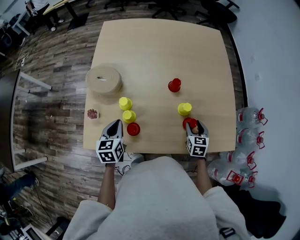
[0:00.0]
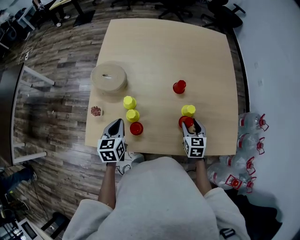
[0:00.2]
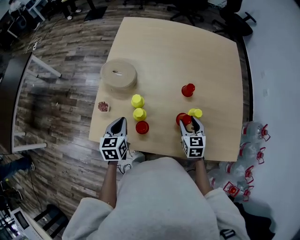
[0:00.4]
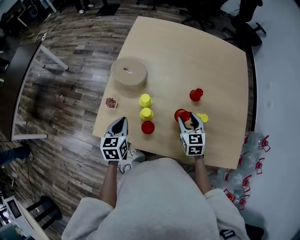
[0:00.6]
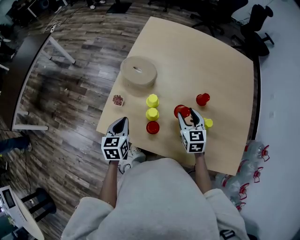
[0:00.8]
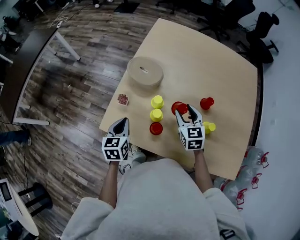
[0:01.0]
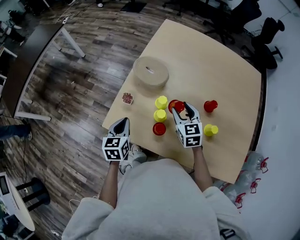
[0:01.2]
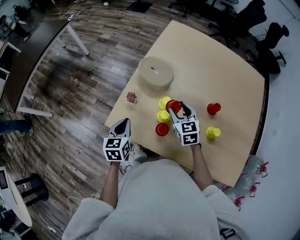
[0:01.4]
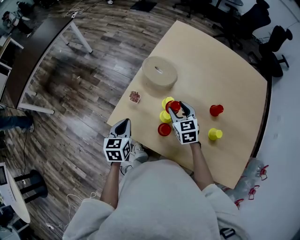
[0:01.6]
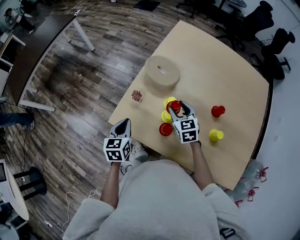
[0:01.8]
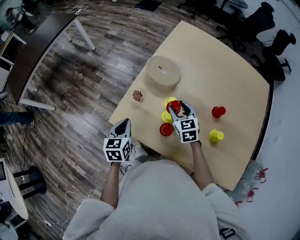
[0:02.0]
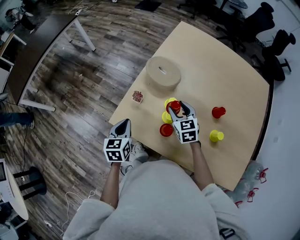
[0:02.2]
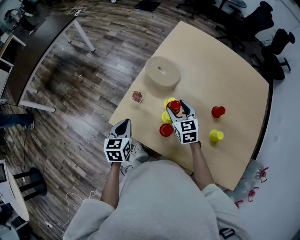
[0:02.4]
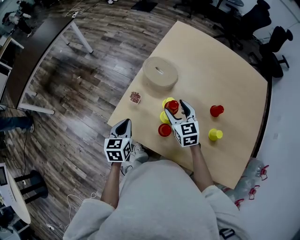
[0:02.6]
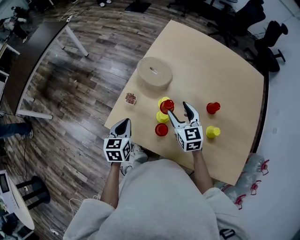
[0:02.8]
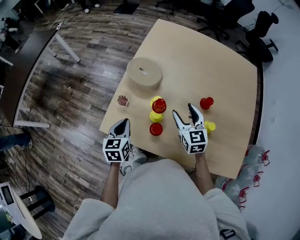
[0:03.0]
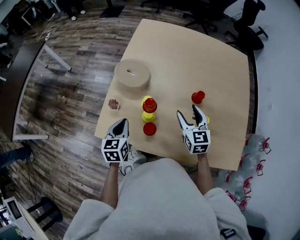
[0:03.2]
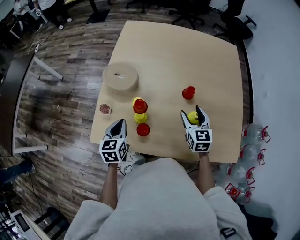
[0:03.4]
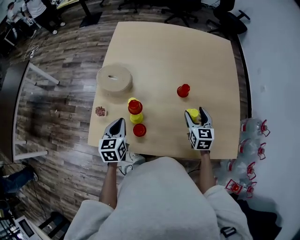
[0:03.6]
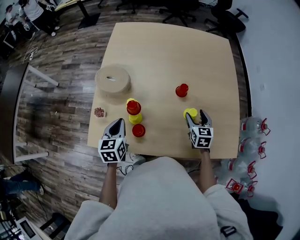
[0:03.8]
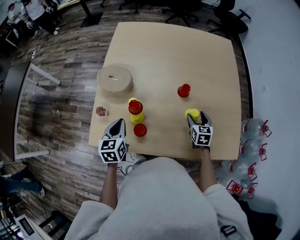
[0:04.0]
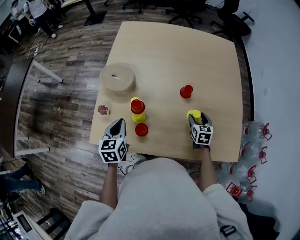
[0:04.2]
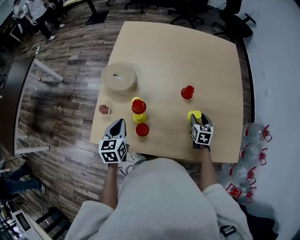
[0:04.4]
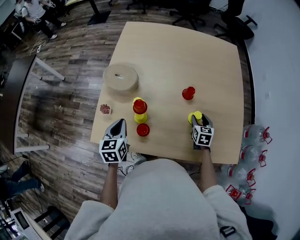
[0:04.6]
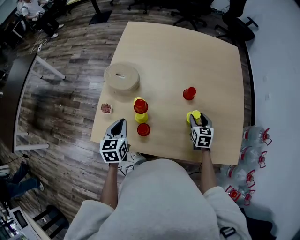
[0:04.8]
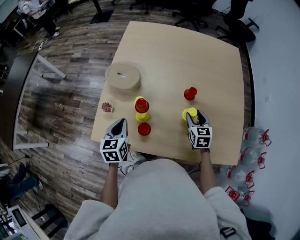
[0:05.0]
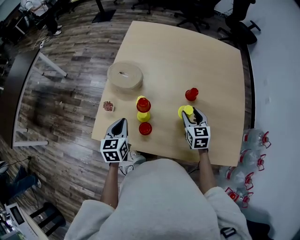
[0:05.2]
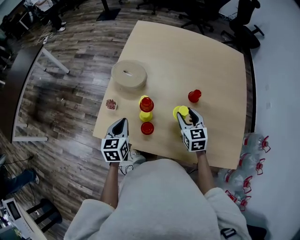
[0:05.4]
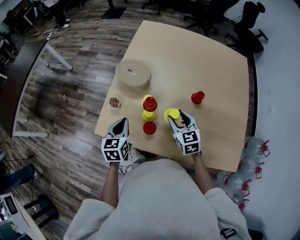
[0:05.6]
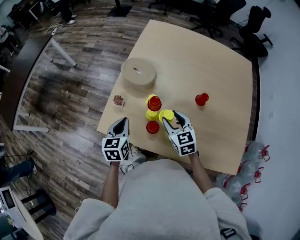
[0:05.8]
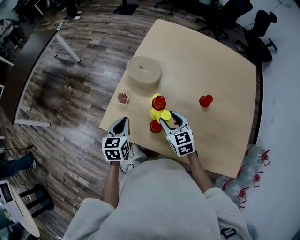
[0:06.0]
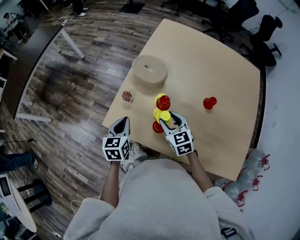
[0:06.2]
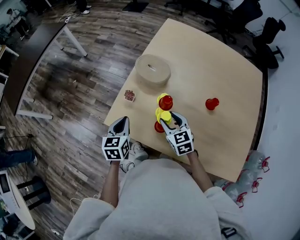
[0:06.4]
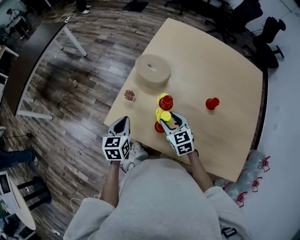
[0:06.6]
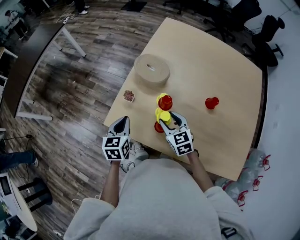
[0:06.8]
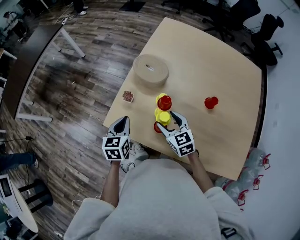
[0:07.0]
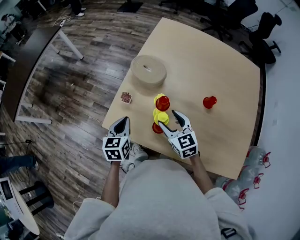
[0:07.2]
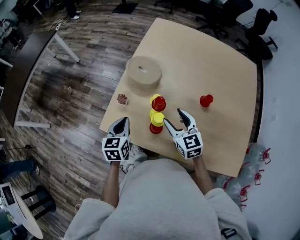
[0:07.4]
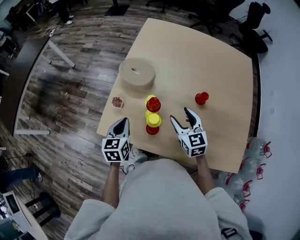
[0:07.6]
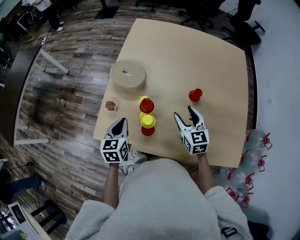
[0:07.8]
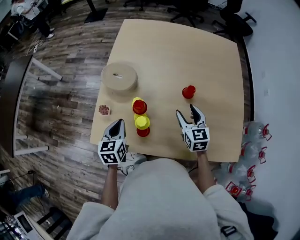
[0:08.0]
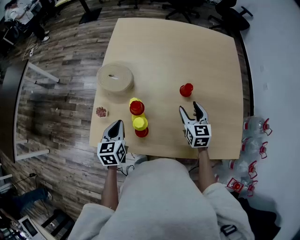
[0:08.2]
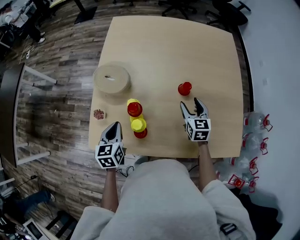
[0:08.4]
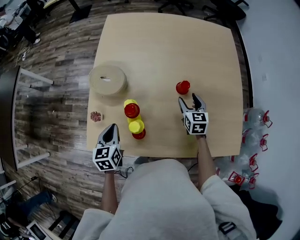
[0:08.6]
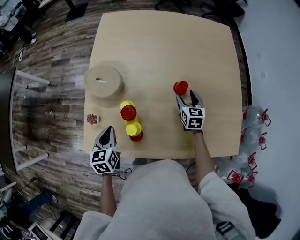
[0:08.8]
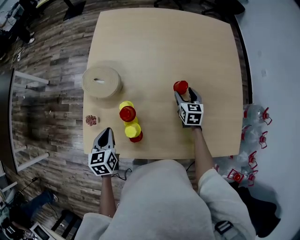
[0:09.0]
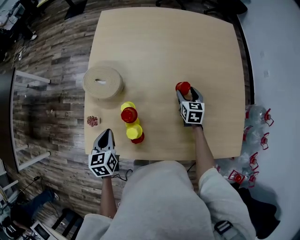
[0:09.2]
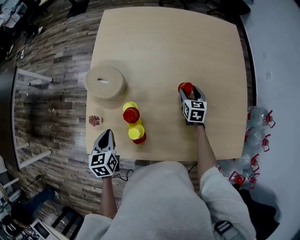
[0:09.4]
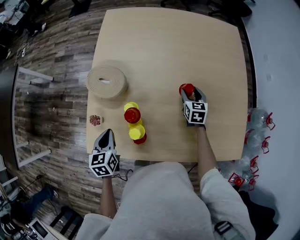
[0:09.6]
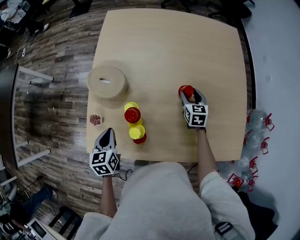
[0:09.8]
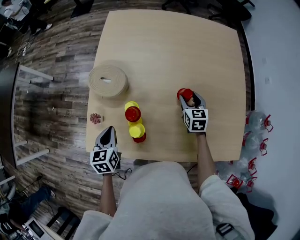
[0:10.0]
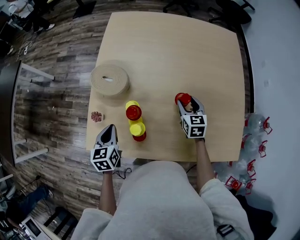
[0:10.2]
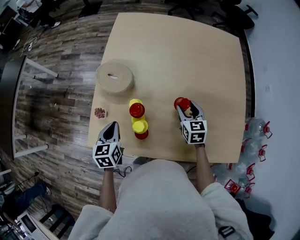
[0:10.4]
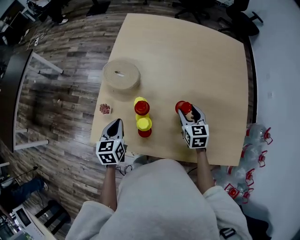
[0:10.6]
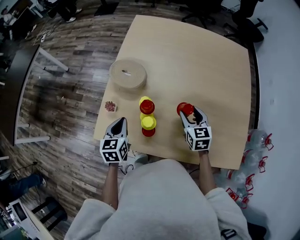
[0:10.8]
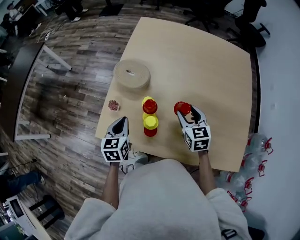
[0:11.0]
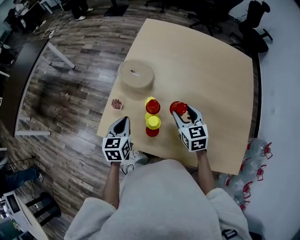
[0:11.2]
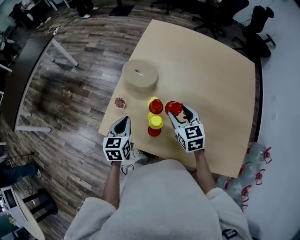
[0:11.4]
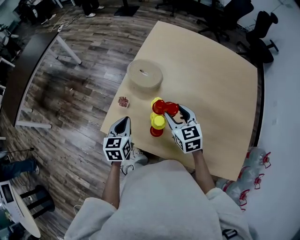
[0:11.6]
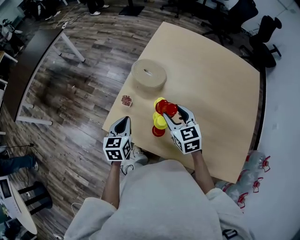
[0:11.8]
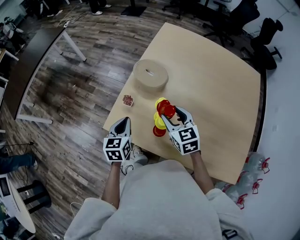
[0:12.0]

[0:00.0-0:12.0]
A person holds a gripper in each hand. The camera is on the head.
0:00.0 to 0:01.6: The left gripper ends up about 15 cm from where it was, and turns by roughly 20 degrees; the right gripper moves some 35 cm, and swivels approximately 50 degrees.
0:01.6 to 0:03.0: The right gripper travels to the right and upward by some 10 cm.
0:03.0 to 0:04.4: The right gripper is displaced to the right and downward by approximately 30 cm, and changes its angle by some 40 degrees. Meanwhile the left gripper moves to the right, some 5 cm.
0:04.4 to 0:06.0: The left gripper changes place by some 10 cm, while the right gripper changes place by roughly 30 cm, and turns by about 40 degrees.
0:06.0 to 0:07.6: The right gripper travels to the right by roughly 5 cm.
0:07.6 to 0:09.0: The right gripper travels to the right, downward and forward by about 25 cm, and rotates approximately 30 degrees. The left gripper shifts by roughly 5 cm.
0:09.0 to 0:10.4: The right gripper heads backward and upward, covering about 10 cm.
0:10.4 to 0:12.0: The right gripper shifts approximately 25 cm to the left and upward, and swivels approximately 30 degrees. The left gripper shifts some 5 cm to the left.

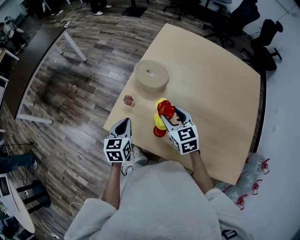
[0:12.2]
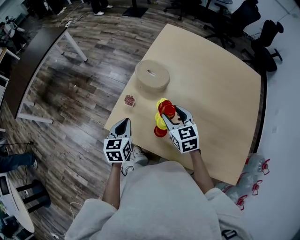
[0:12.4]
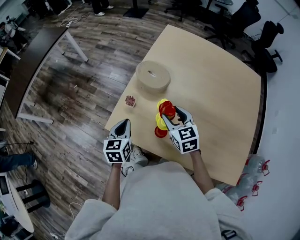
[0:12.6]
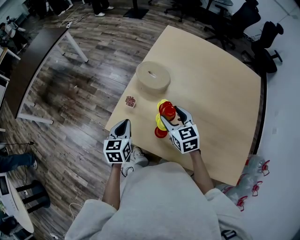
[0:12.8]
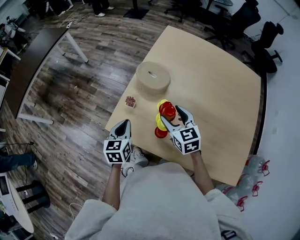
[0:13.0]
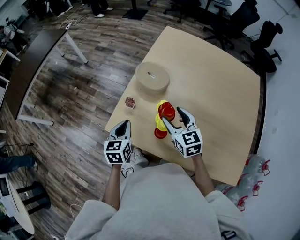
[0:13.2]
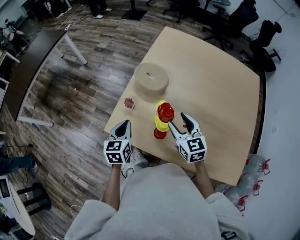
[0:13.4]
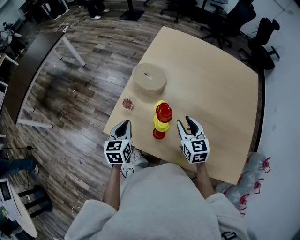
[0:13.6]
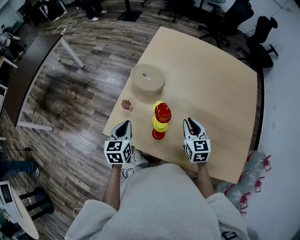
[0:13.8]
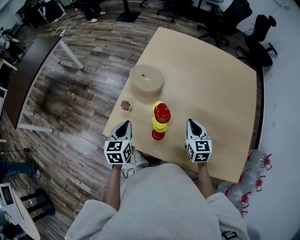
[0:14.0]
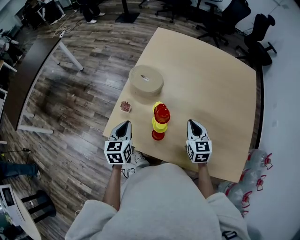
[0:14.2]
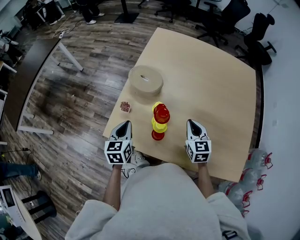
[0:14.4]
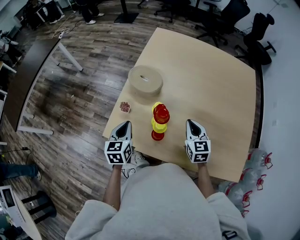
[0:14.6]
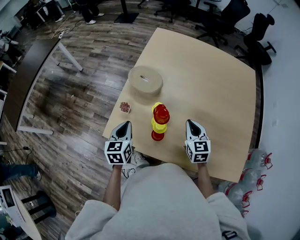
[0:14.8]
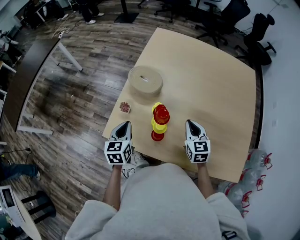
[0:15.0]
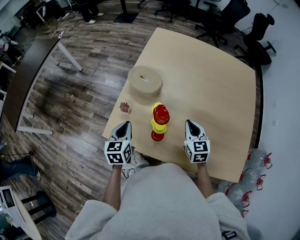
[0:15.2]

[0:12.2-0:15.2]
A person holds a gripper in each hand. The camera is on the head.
0:12.2 to 0:13.8: The right gripper moves to the right, some 10 cm, and closes its fingers.
0:13.8 to 0:15.2: The grippers move only a little.

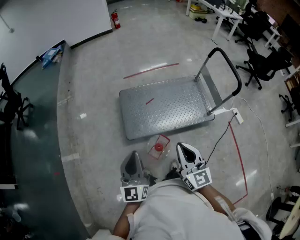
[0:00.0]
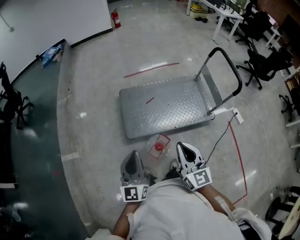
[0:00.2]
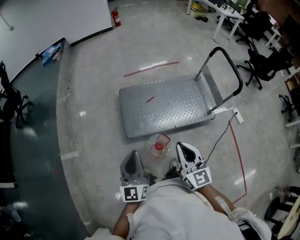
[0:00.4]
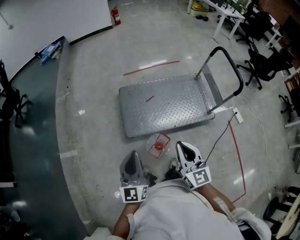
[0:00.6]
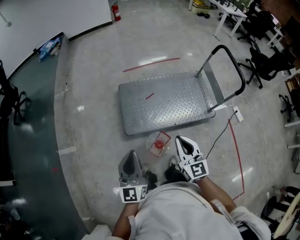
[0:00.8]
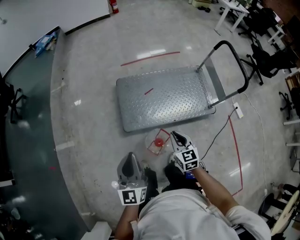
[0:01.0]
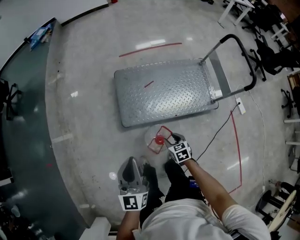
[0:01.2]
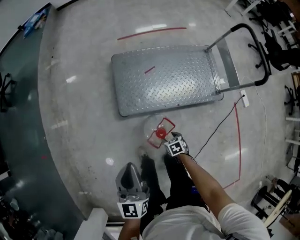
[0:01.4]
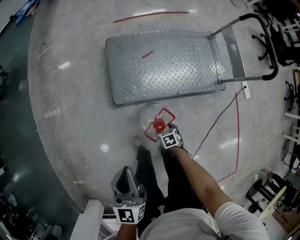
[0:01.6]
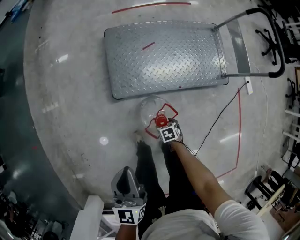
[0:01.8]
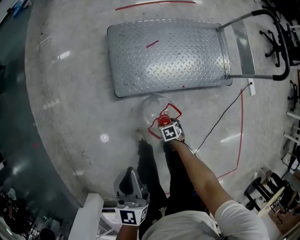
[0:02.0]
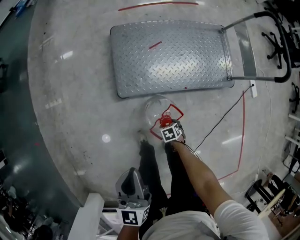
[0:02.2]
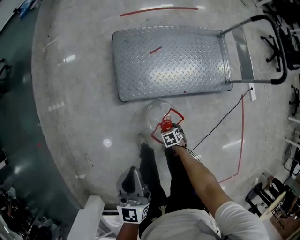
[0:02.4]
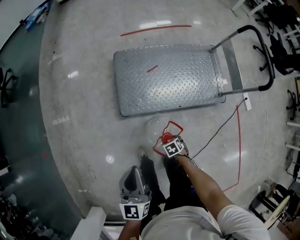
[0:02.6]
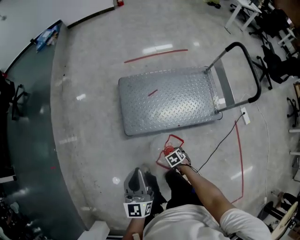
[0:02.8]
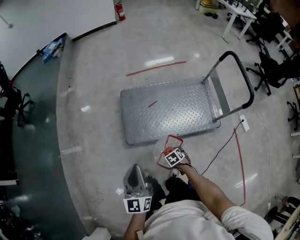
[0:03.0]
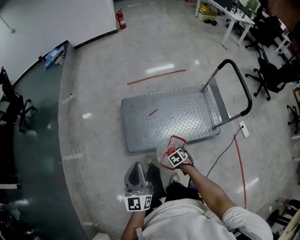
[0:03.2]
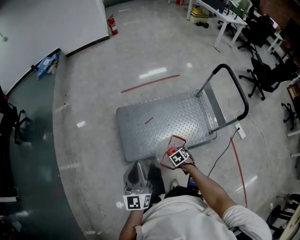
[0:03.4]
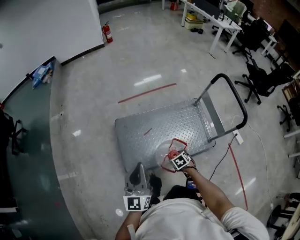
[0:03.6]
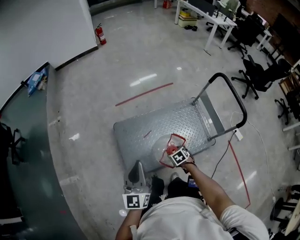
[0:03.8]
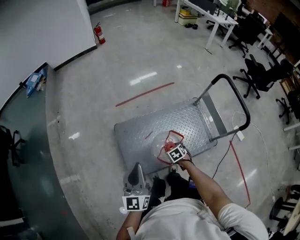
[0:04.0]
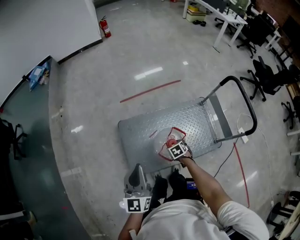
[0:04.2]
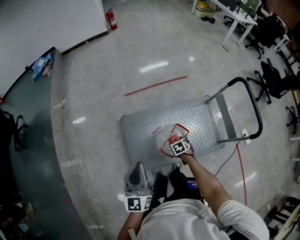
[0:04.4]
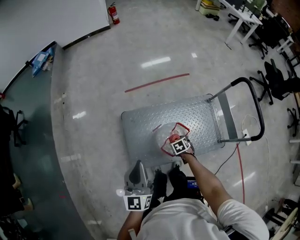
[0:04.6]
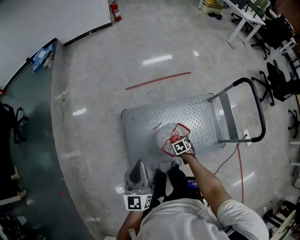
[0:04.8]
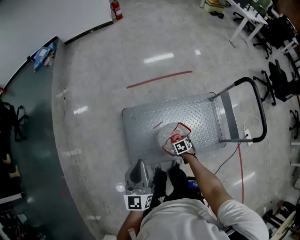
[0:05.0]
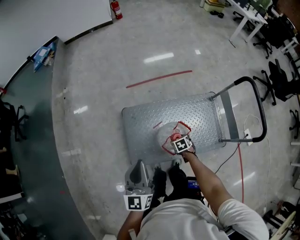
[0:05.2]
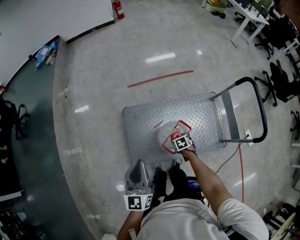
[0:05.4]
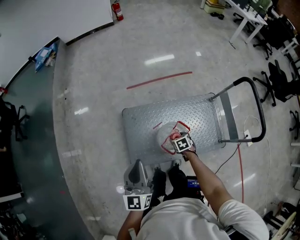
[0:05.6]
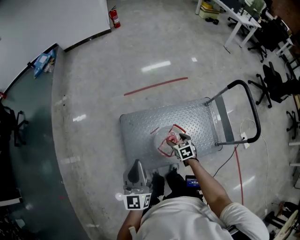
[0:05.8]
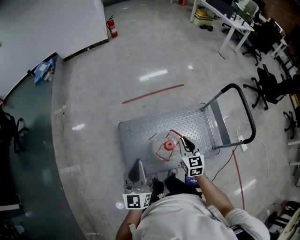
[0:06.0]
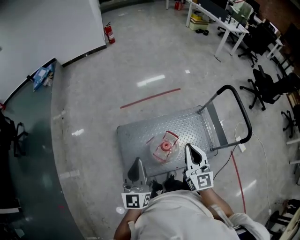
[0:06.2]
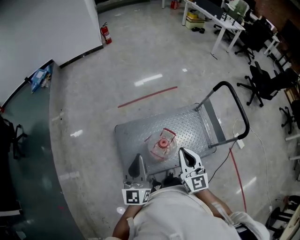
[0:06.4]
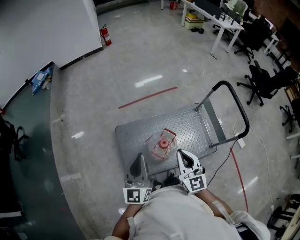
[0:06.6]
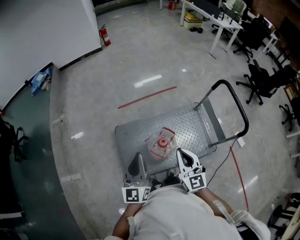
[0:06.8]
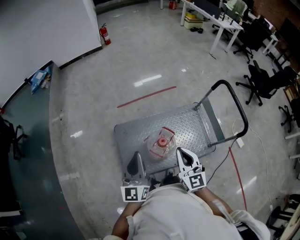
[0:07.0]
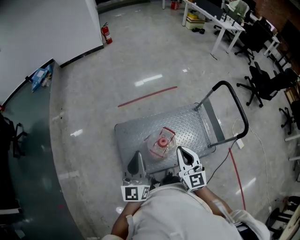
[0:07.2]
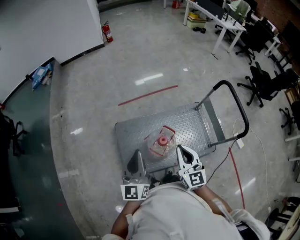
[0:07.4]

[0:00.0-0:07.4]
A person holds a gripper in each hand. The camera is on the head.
0:00.0 to 0:01.4: The right gripper moves downward, approximately 50 cm, angles its fingers downward, by about 70 degrees, and opens its fingers. Meanwhile the left gripper heads downward, covering about 10 cm.
0:01.4 to 0:03.0: The left gripper ends up roughly 10 cm from where it was. The right gripper moves upward, some 10 cm.
0:03.0 to 0:04.4: The right gripper changes place by about 35 cm, while the left gripper shifts by approximately 30 cm.
0:04.4 to 0:06.0: The left gripper ends up some 5 cm from where it was, while the right gripper travels upward by approximately 25 cm, points its fingers approximately 40 degrees further upward, and closes its fingers.
0:06.0 to 0:07.4: The right gripper shifts about 15 cm upward and backward, and swivels approximately 20 degrees.

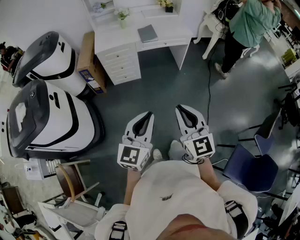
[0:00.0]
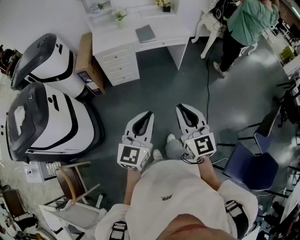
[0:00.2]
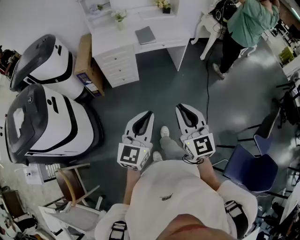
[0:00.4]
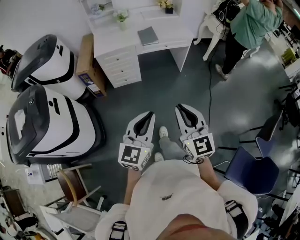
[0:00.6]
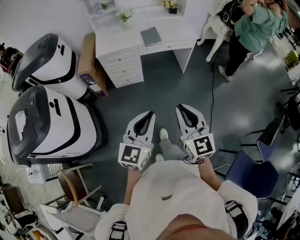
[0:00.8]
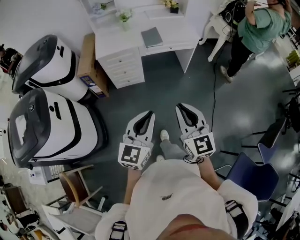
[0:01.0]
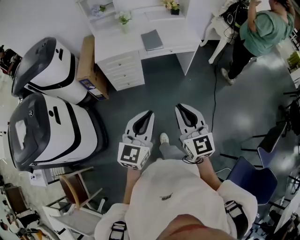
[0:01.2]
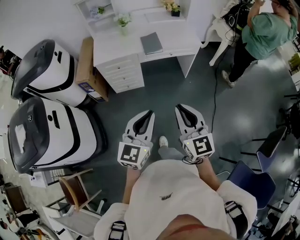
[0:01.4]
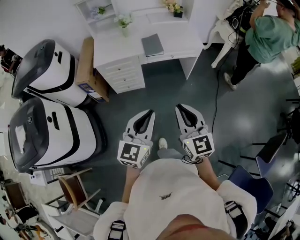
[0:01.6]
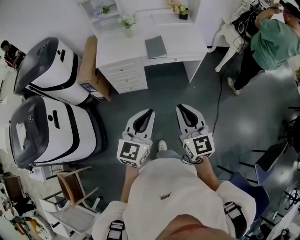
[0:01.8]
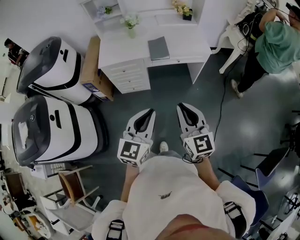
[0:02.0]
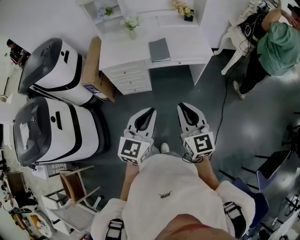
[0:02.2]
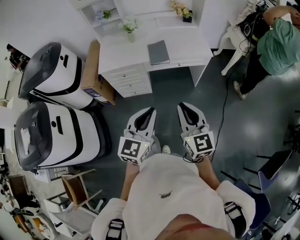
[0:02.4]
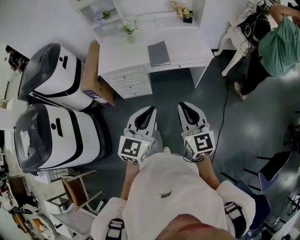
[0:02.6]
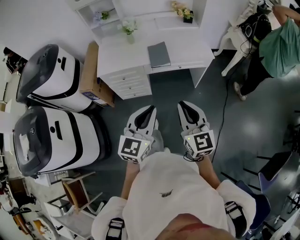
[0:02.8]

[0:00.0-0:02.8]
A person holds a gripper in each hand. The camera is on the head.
0:00.0 to 0:01.4: The two grippers go approximately 20 cm forward.
0:01.4 to 0:02.8: The grippers both shift forward by roughly 20 cm.
